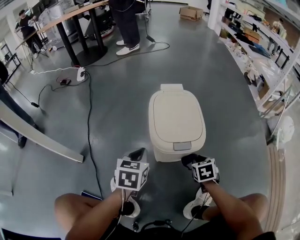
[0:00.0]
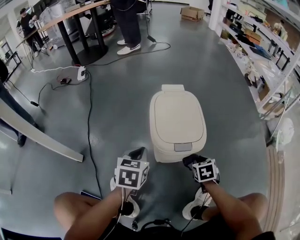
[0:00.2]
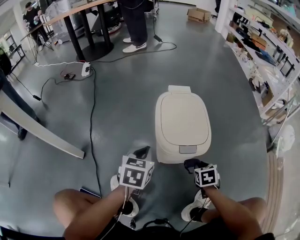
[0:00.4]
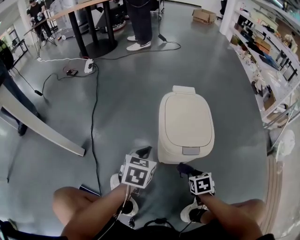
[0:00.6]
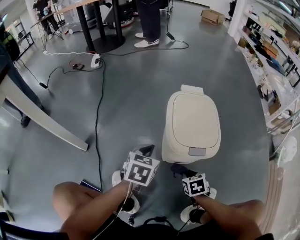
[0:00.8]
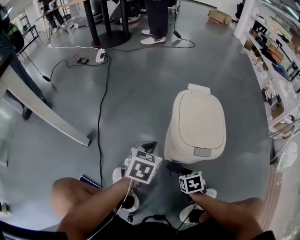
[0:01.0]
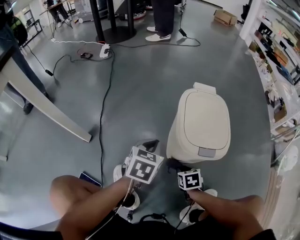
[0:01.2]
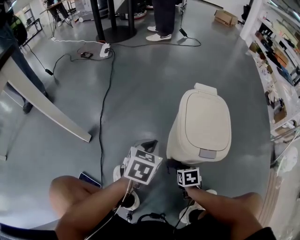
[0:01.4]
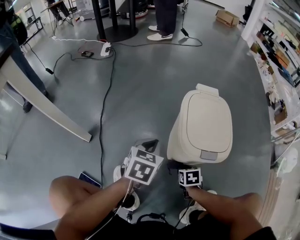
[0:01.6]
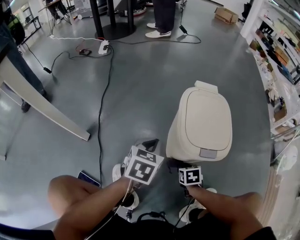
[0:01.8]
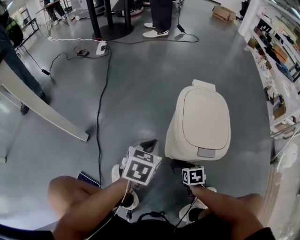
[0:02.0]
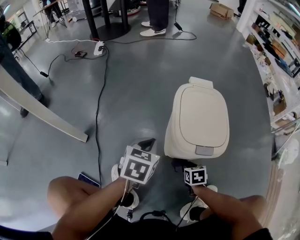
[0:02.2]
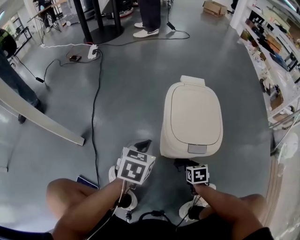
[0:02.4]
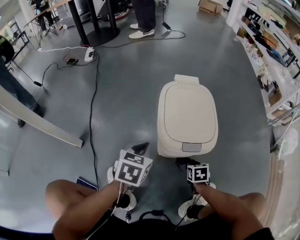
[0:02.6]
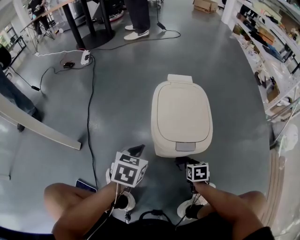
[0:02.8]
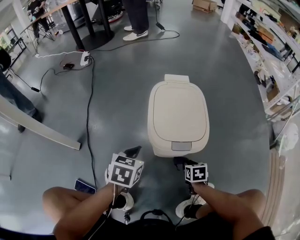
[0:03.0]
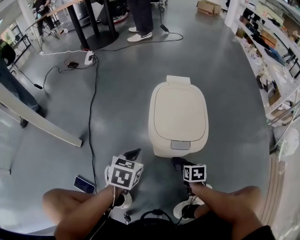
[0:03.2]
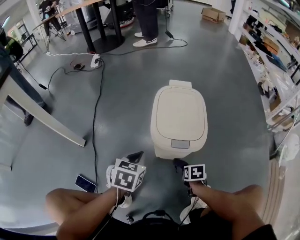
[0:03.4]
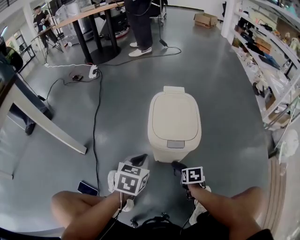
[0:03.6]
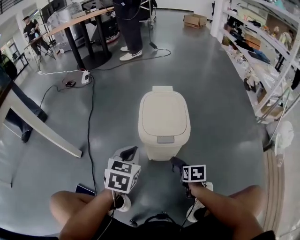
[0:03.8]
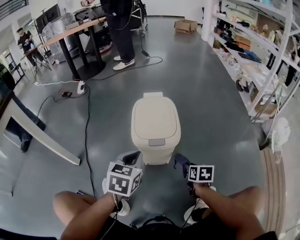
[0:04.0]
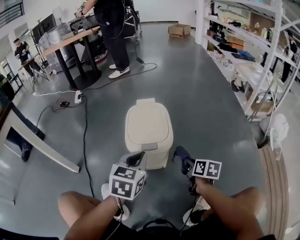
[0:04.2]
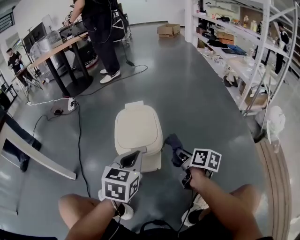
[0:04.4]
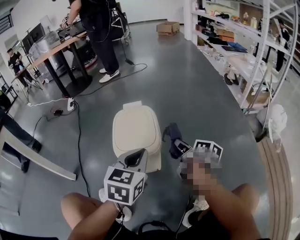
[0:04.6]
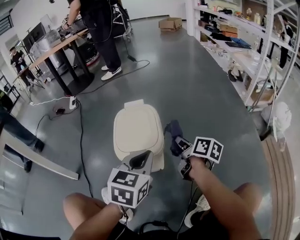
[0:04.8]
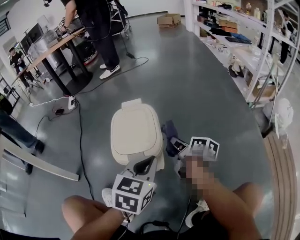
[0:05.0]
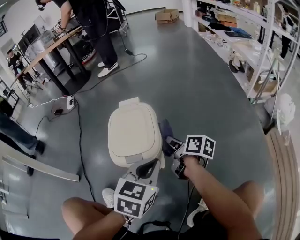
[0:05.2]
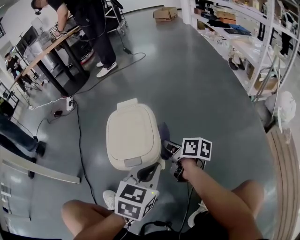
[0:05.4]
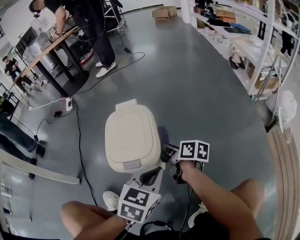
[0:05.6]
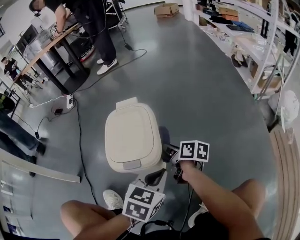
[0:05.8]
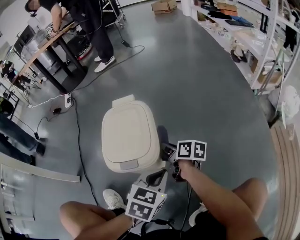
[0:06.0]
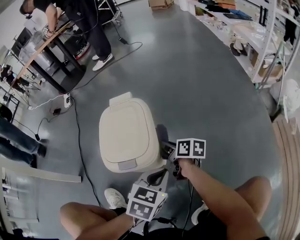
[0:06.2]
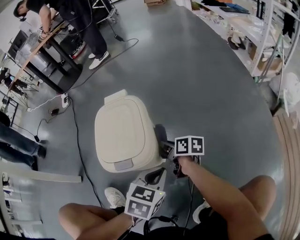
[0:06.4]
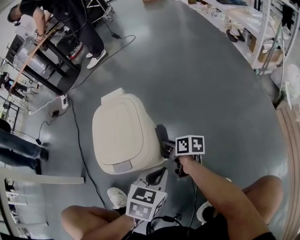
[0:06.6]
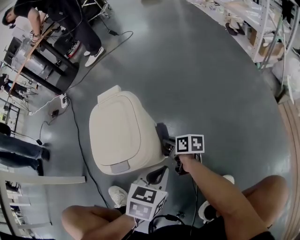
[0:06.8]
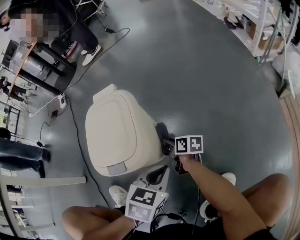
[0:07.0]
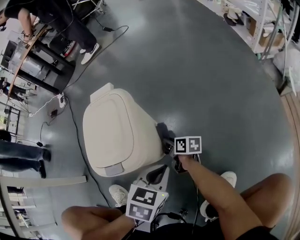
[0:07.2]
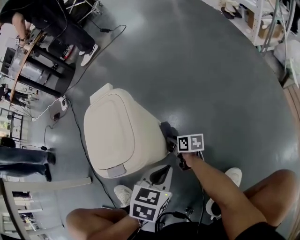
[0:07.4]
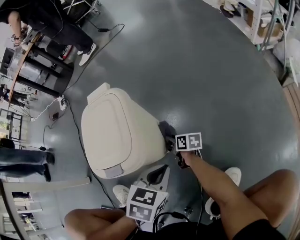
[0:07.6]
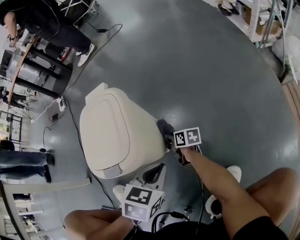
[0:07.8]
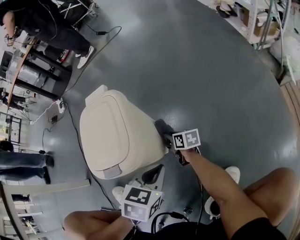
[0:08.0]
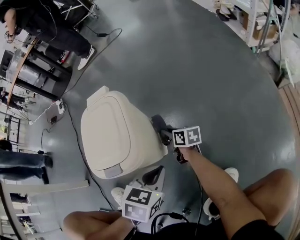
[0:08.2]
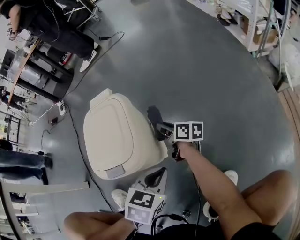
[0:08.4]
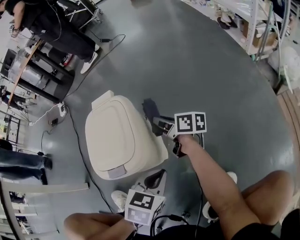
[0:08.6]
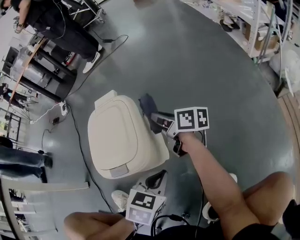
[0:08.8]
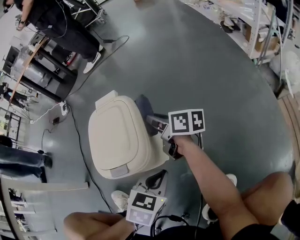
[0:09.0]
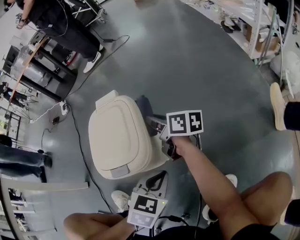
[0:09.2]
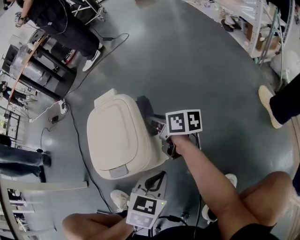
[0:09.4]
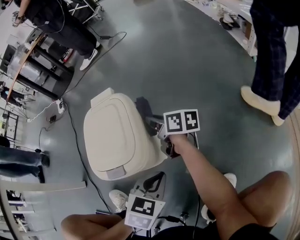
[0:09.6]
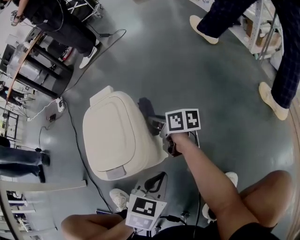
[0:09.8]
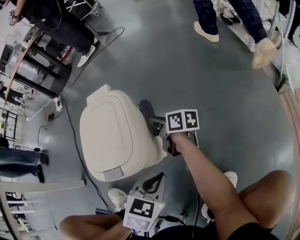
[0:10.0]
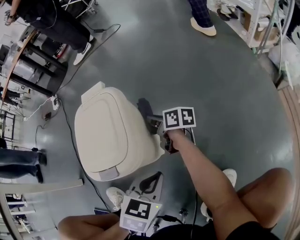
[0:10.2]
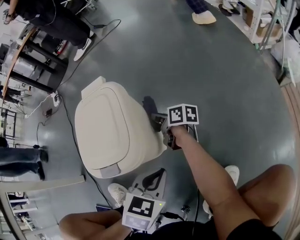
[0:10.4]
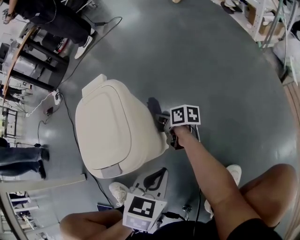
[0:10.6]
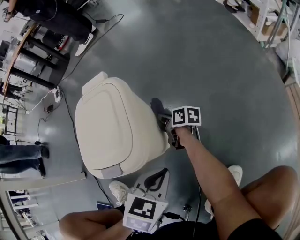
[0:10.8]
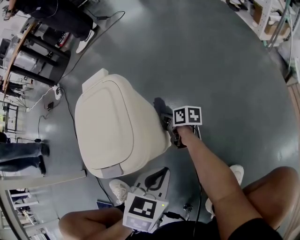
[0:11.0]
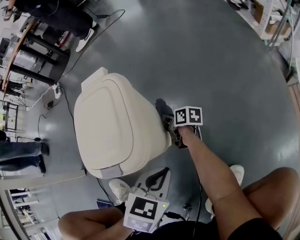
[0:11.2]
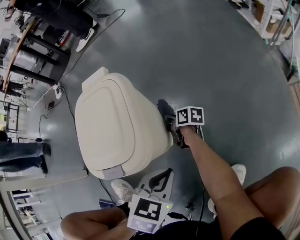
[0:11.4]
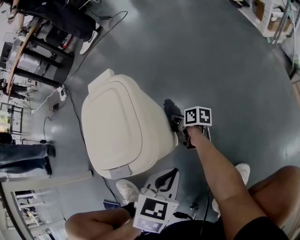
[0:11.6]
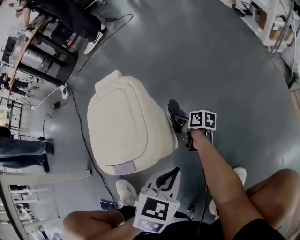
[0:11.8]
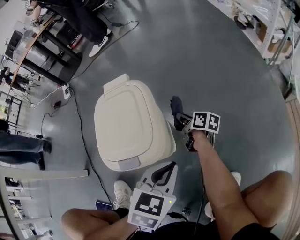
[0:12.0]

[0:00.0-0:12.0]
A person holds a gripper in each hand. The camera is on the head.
0:00.0 to 0:01.6: The right gripper travels to the left and downward by about 15 cm. The left gripper moves approximately 5 cm.
0:01.6 to 0:03.0: The left gripper moves some 5 cm. Meanwhile the right gripper is displaced to the right by about 10 cm.
0:03.0 to 0:04.4: The two grippers go approximately 25 cm upward and to the right. The left gripper rotates roughly 20 degrees; the right gripper points its fingers some 40 degrees further upward.
0:04.4 to 0:06.0: The right gripper moves forward, downward and to the left, roughly 15 cm. The left gripper travels downward and to the right by roughly 15 cm.
0:06.0 to 0:07.6: The right gripper goes about 20 cm downward. Meanwhile the left gripper heads downward, covering roughly 10 cm.
0:07.6 to 0:09.0: The right gripper shifts about 25 cm upward, and changes its angle by approximately 20 degrees.
0:09.0 to 0:10.4: The right gripper is displaced downward by roughly 15 cm.
0:10.4 to 0:12.0: The left gripper moves upward, roughly 5 cm; the right gripper goes downward and returns, approximately 10 cm each way.

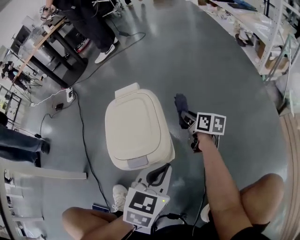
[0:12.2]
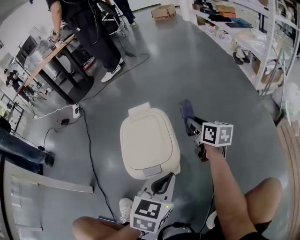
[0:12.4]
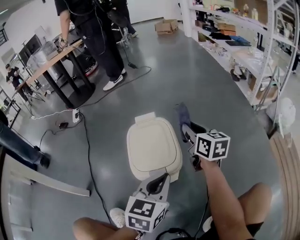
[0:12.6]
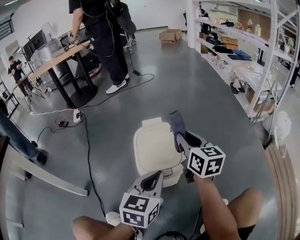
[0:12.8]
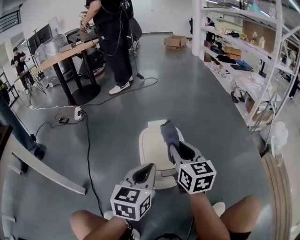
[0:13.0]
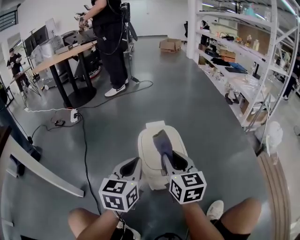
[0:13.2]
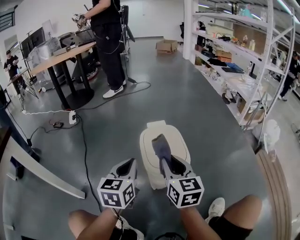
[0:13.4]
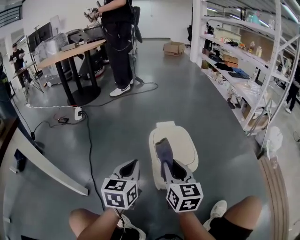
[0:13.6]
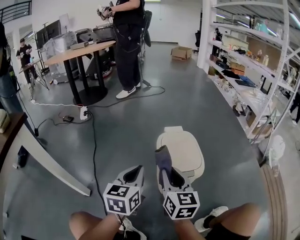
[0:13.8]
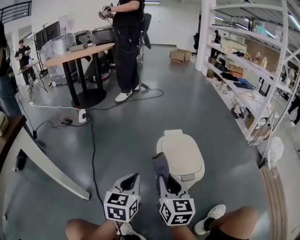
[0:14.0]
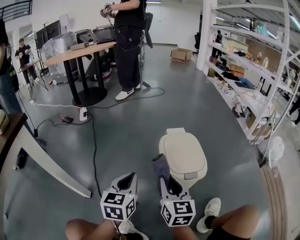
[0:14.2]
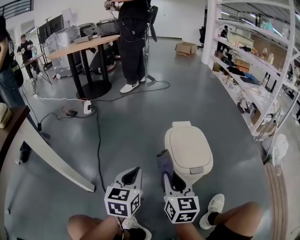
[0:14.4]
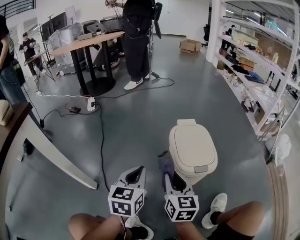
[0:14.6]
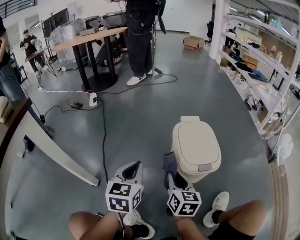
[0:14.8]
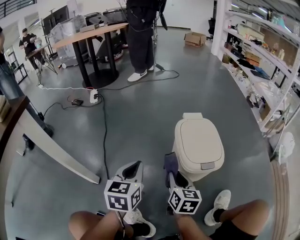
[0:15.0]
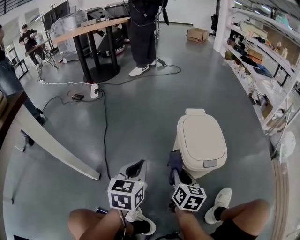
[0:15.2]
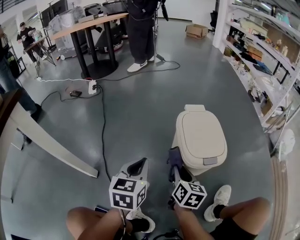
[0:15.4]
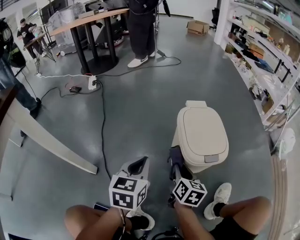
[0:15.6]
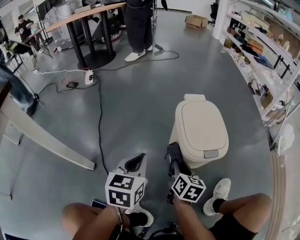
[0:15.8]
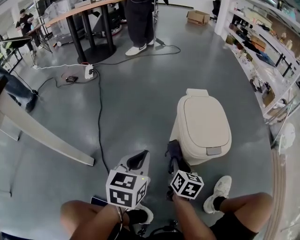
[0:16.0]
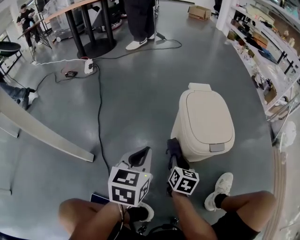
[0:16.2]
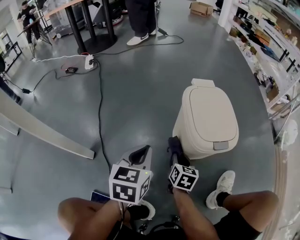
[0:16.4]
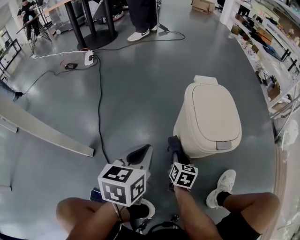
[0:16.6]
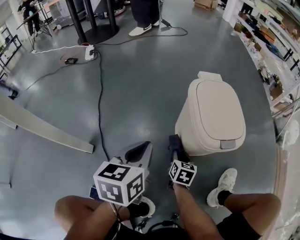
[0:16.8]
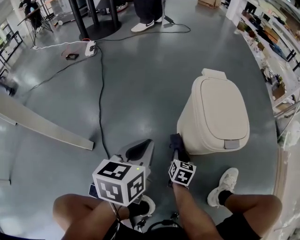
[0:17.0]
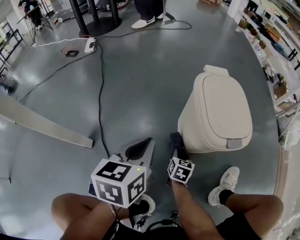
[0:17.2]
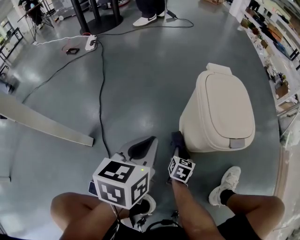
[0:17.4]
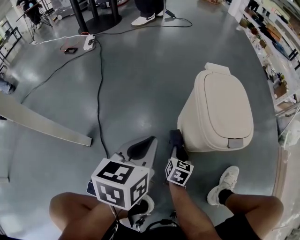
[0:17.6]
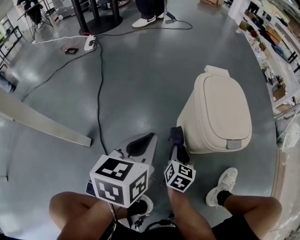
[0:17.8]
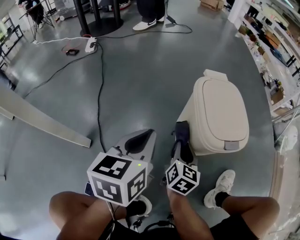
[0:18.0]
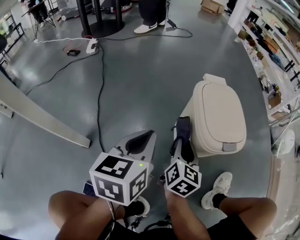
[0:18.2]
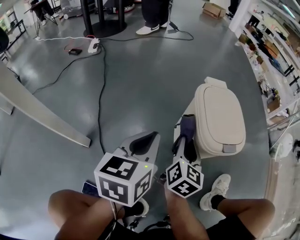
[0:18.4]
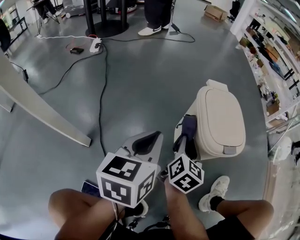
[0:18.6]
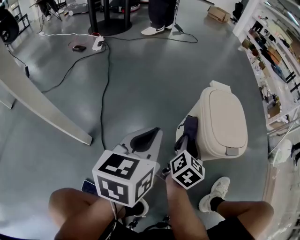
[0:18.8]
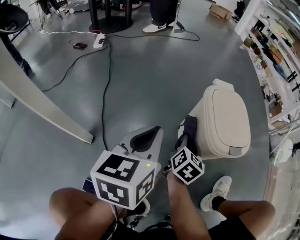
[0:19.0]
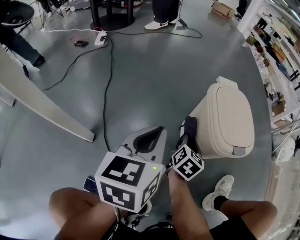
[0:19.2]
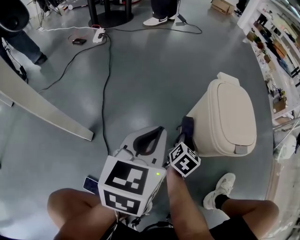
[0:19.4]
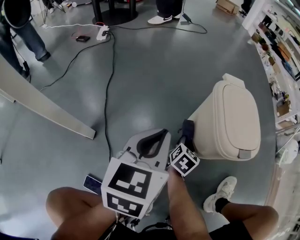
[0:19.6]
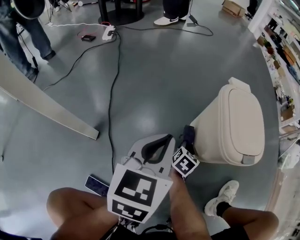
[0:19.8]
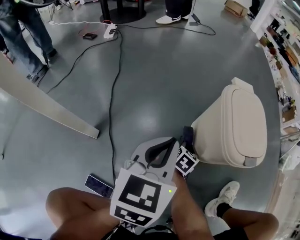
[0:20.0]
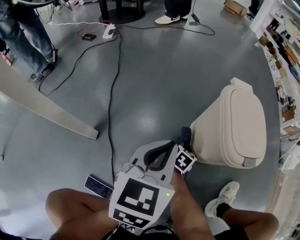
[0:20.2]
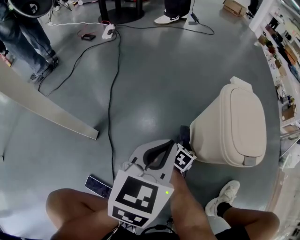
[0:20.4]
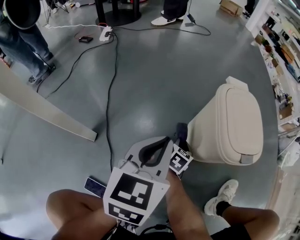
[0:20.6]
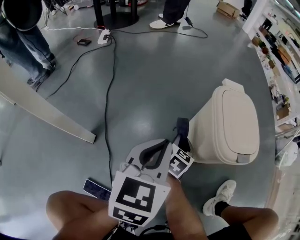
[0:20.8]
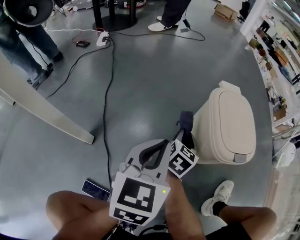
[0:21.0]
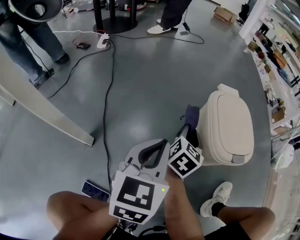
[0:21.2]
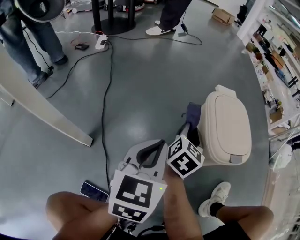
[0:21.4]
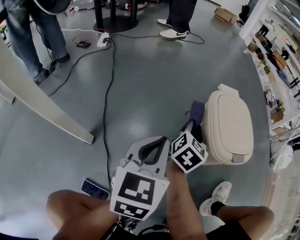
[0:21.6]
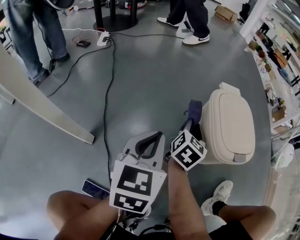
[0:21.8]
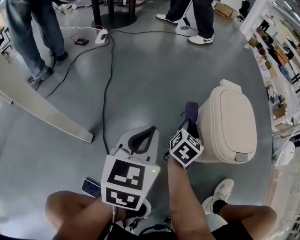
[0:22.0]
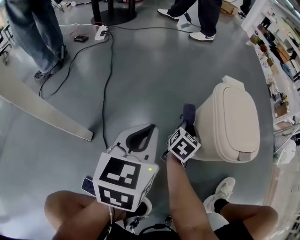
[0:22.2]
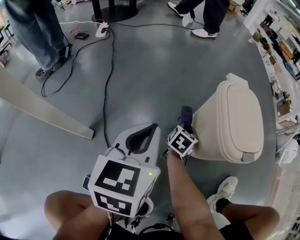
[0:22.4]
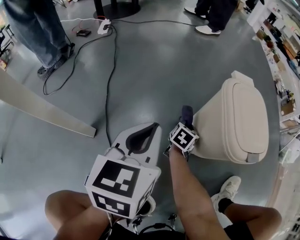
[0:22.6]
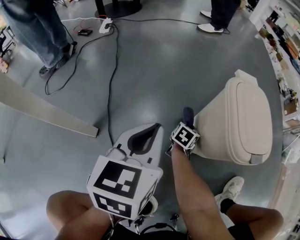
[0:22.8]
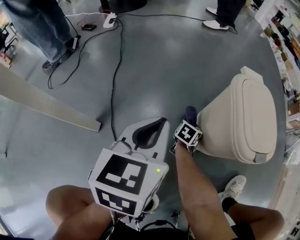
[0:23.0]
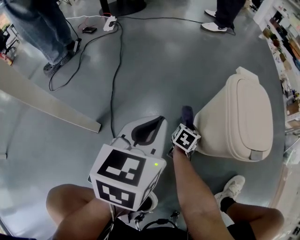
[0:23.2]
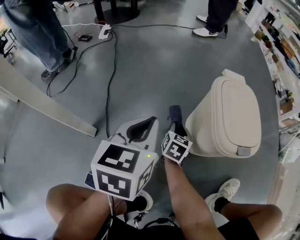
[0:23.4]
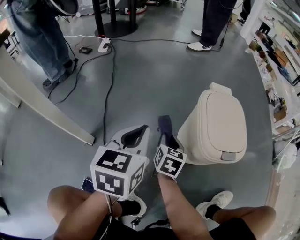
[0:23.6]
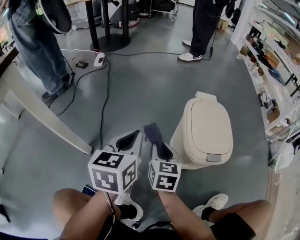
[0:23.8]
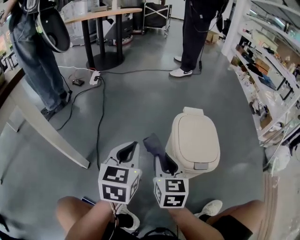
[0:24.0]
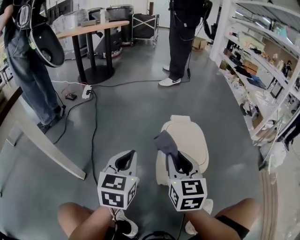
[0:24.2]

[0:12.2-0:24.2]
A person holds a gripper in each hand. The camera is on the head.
0:12.2 to 0:13.8: The left gripper goes some 35 cm to the left and upward, and changes its angle by approximately 30 degrees. The right gripper goes some 40 cm to the left, backward and upward, and changes its angle by some 40 degrees.
0:13.8 to 0:15.2: The right gripper goes about 15 cm downward, and rotates approximately 20 degrees, while the left gripper goes about 10 cm to the left and downward.
0:15.2 to 0:16.6: The left gripper changes place by about 5 cm; the right gripper shifts about 15 cm downward.
0:16.6 to 0:18.2: The right gripper heads upward, covering some 15 cm, and swivels some 20 degrees.
0:18.2 to 0:19.8: The right gripper moves downward, some 20 cm, and changes its angle by some 20 degrees.
0:19.8 to 0:21.2: The right gripper heads upward, covering about 20 cm.
0:21.2 to 0:22.6: The left gripper moves to the left, some 5 cm; the right gripper heads downward, covering about 20 cm, and swivels roughly 20 degrees.
0:22.6 to 0:24.2: The right gripper is displaced upward by some 40 cm, and rotates about 50 degrees. Meanwhile the left gripper is displaced upward and to the right by about 15 cm.
